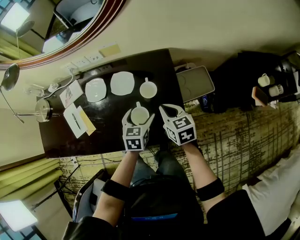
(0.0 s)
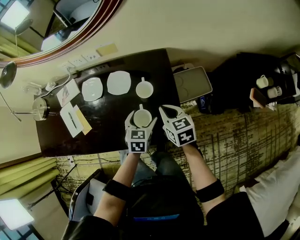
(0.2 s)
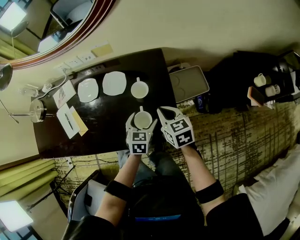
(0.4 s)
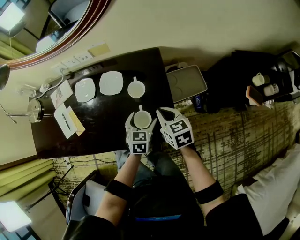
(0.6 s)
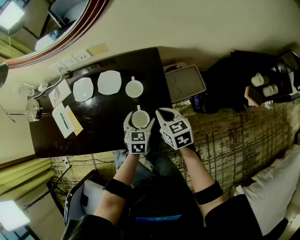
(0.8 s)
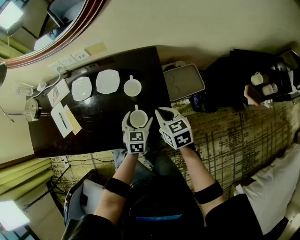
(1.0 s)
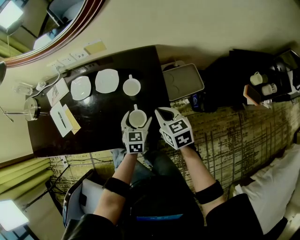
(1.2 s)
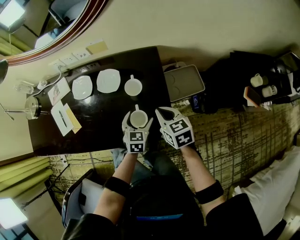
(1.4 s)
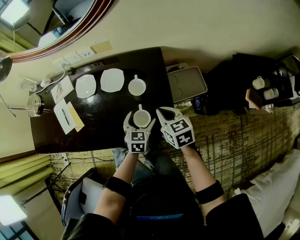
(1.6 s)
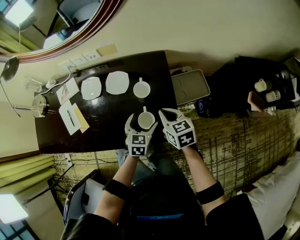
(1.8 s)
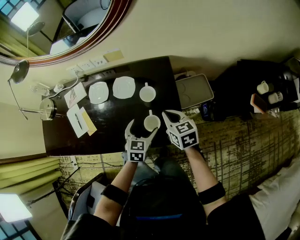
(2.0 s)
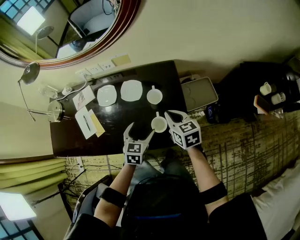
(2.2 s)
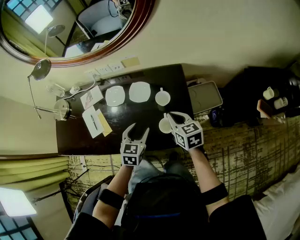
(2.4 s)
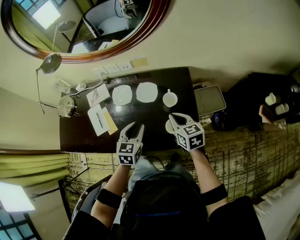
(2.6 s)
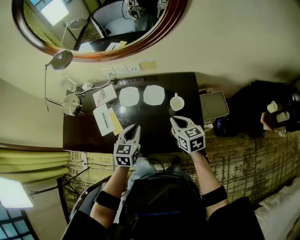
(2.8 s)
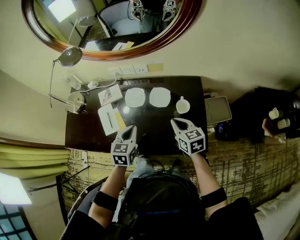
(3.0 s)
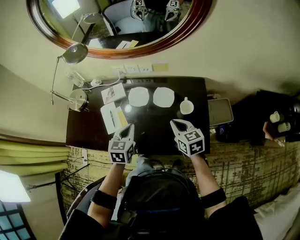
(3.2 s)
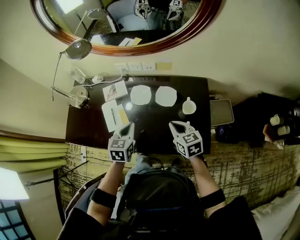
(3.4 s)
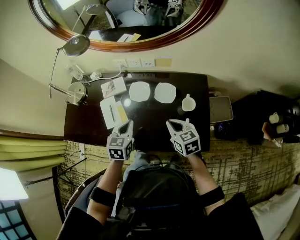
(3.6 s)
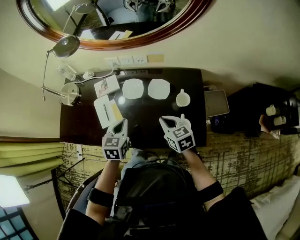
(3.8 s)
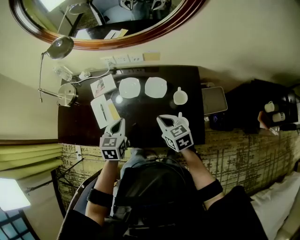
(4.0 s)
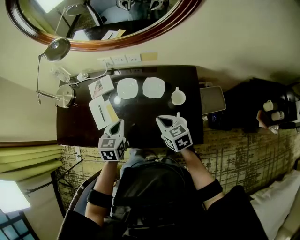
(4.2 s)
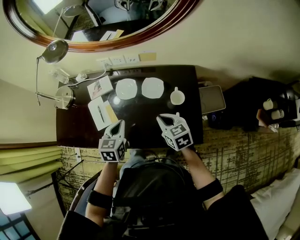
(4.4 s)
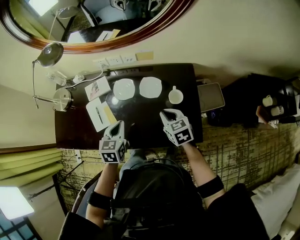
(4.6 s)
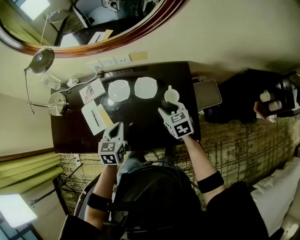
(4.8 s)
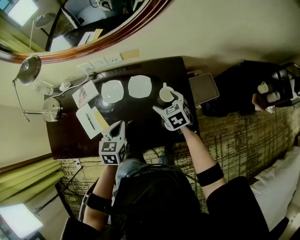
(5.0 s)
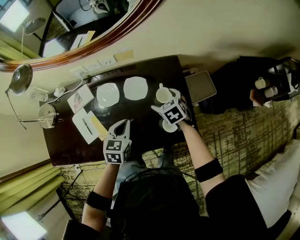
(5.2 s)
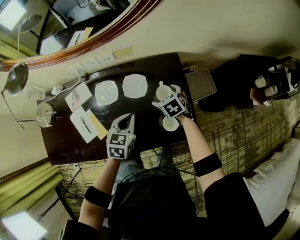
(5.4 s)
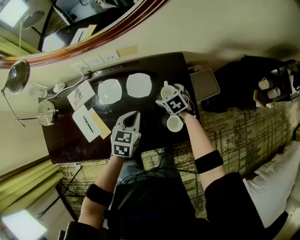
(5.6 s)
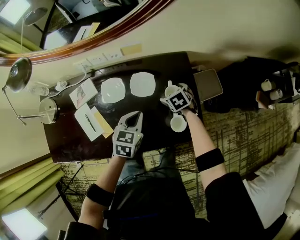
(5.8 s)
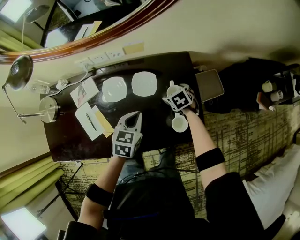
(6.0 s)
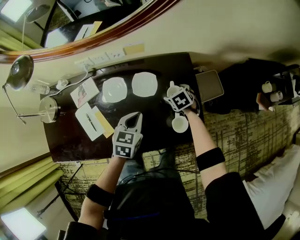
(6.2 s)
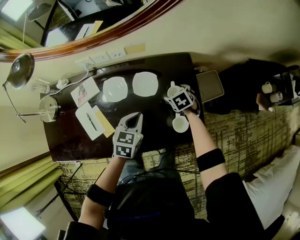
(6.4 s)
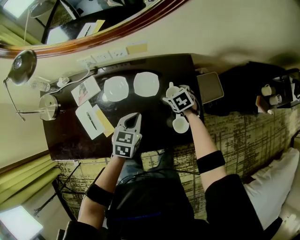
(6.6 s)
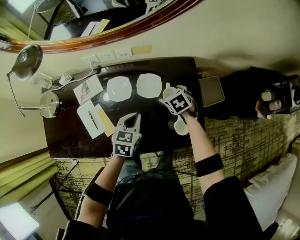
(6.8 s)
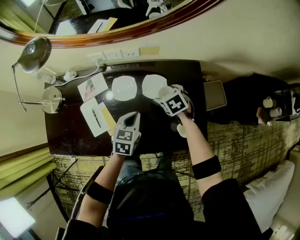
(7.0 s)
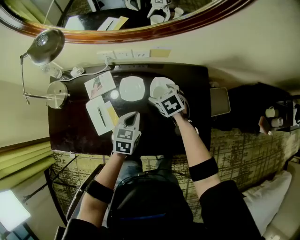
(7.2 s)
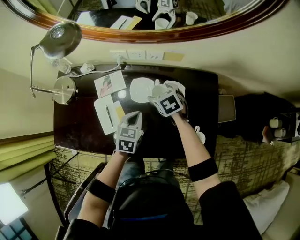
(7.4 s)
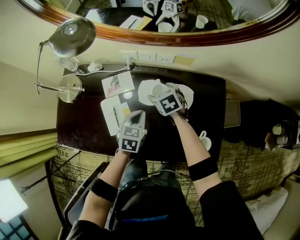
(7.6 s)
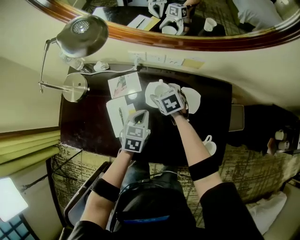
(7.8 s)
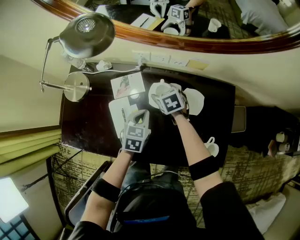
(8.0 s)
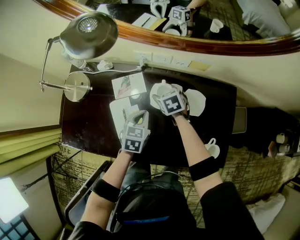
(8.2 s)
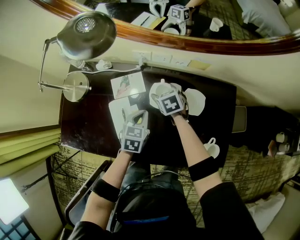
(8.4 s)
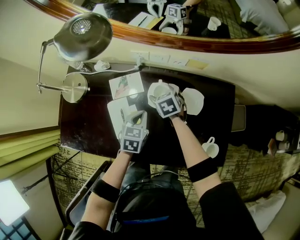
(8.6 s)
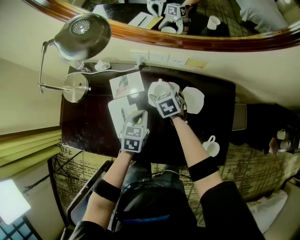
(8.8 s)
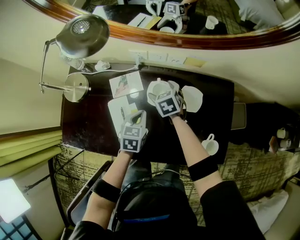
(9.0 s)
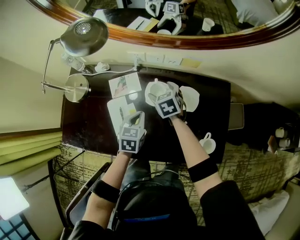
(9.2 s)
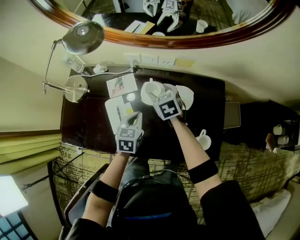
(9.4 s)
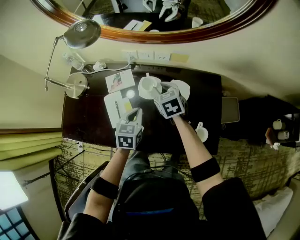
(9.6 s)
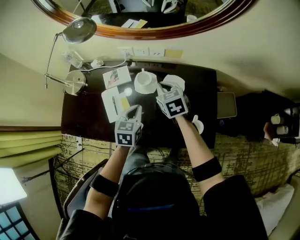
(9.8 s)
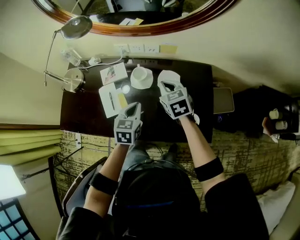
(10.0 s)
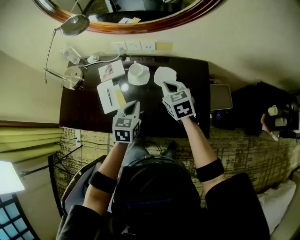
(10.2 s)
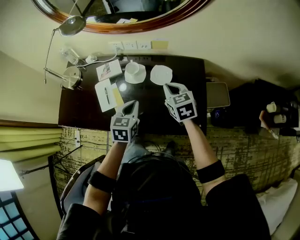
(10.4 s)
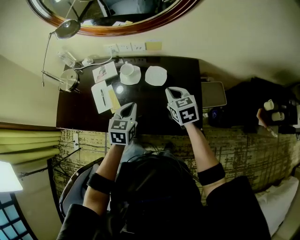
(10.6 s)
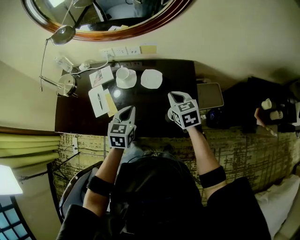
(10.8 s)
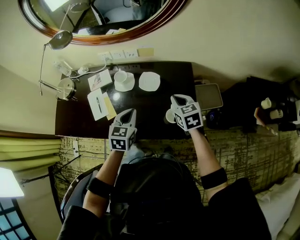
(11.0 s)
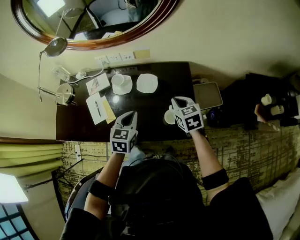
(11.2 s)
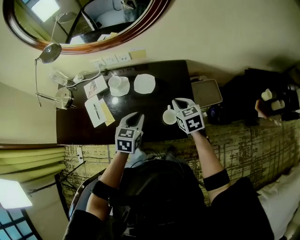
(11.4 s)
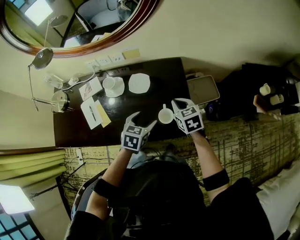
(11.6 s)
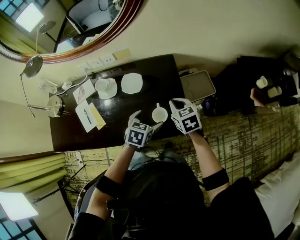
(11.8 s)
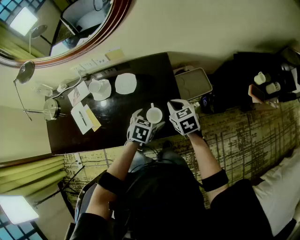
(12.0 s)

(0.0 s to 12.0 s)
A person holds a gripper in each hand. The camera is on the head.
0.0 s - 1.6 s: The left gripper goes approximately 10 cm to the right and downward.
1.6 s - 3.0 s: The right gripper heads to the left and upward, covering about 20 cm. The left gripper moves to the left and upward, some 30 cm, and closes its fingers.
3.0 s - 4.4 s: The right gripper moves approximately 5 cm.
4.4 s - 6.0 s: The right gripper travels downward, forward and to the right by roughly 25 cm, turns by some 30 degrees, and opens its fingers. The left gripper travels to the right and forward by about 15 cm, and rotates about 20 degrees.
6.0 s - 7.6 s: The left gripper goes about 15 cm to the left, while the right gripper heads to the left, covering some 30 cm.
9.0 s - 10.4 s: The left gripper is displaced backward, upward and to the right by approximately 20 cm. Meanwhile the right gripper heads backward, to the right and upward, covering roughly 30 cm, and closes up.
10.4 s - 12.0 s: Both grippers travel together to the right, roughly 25 cm. The left gripper rotates approximately 40 degrees, and opens its fingers.

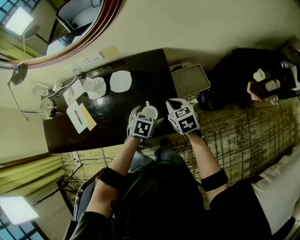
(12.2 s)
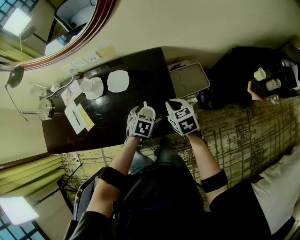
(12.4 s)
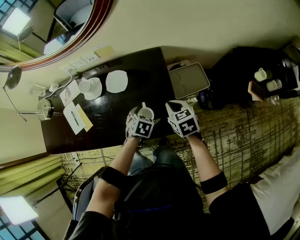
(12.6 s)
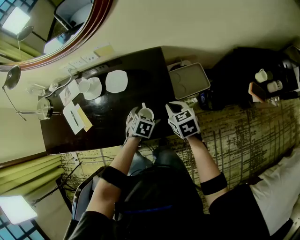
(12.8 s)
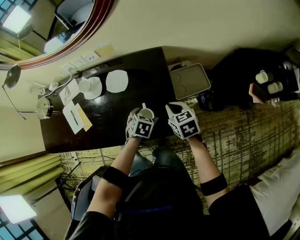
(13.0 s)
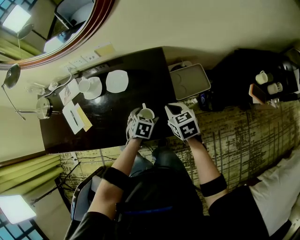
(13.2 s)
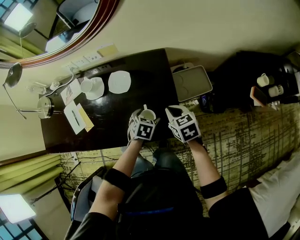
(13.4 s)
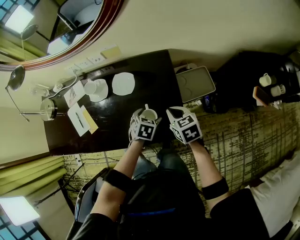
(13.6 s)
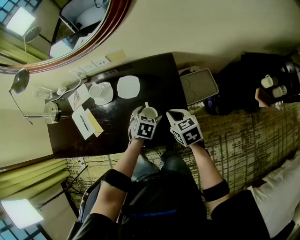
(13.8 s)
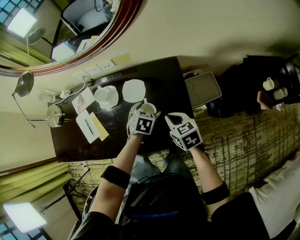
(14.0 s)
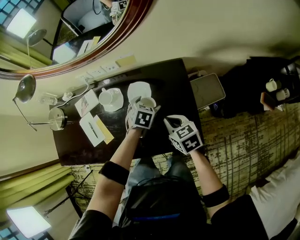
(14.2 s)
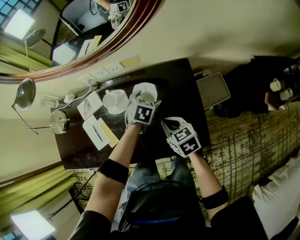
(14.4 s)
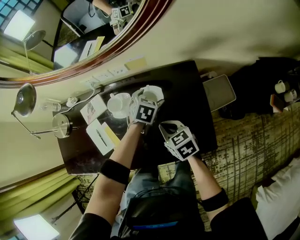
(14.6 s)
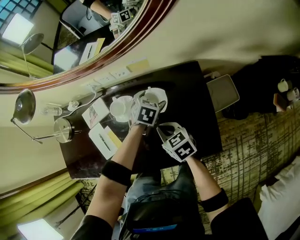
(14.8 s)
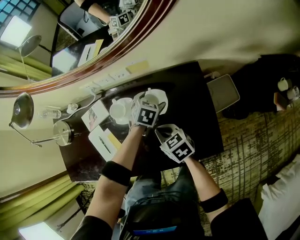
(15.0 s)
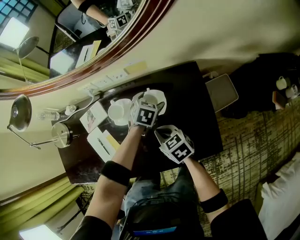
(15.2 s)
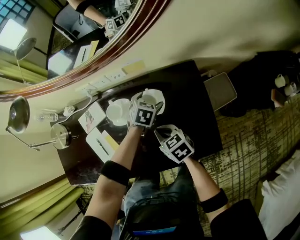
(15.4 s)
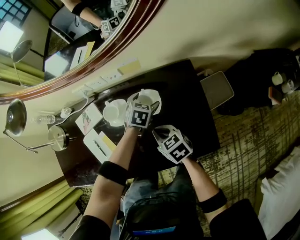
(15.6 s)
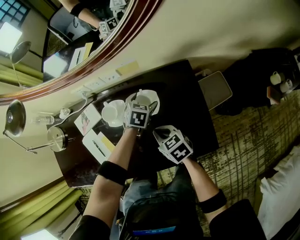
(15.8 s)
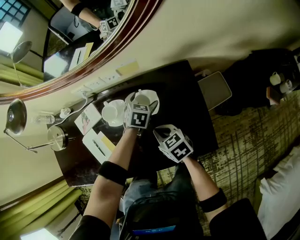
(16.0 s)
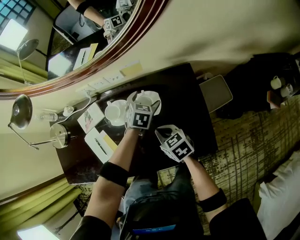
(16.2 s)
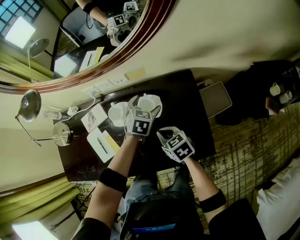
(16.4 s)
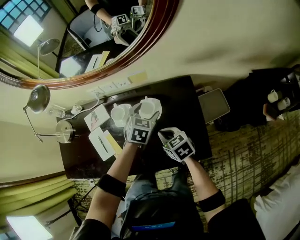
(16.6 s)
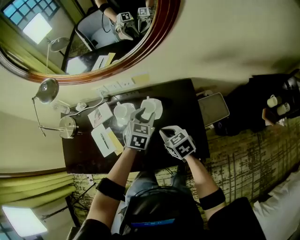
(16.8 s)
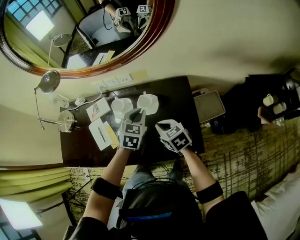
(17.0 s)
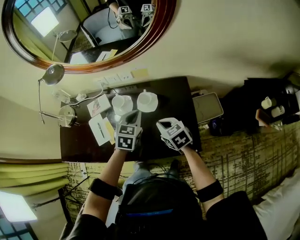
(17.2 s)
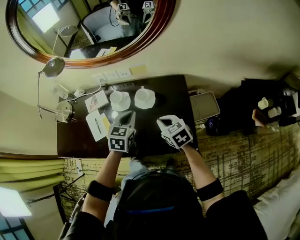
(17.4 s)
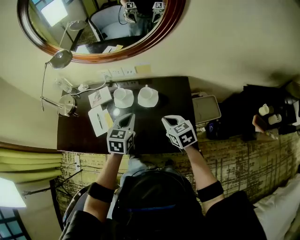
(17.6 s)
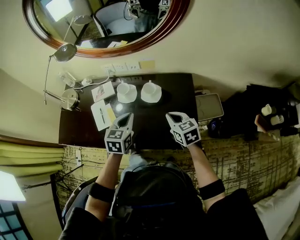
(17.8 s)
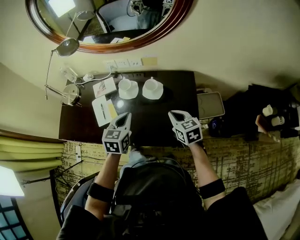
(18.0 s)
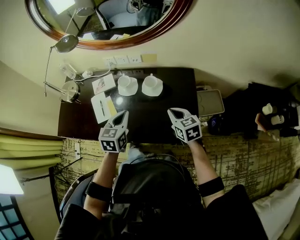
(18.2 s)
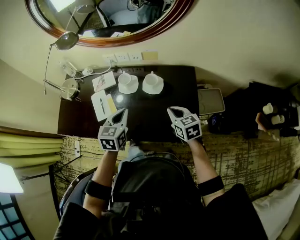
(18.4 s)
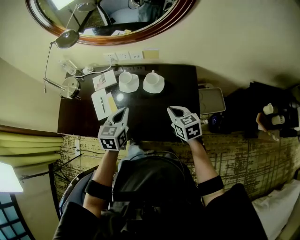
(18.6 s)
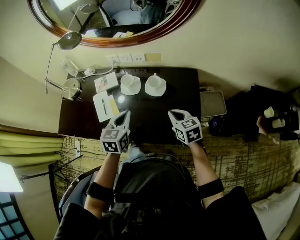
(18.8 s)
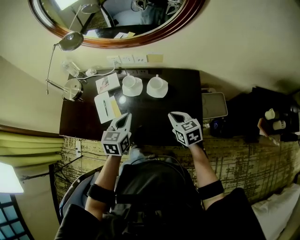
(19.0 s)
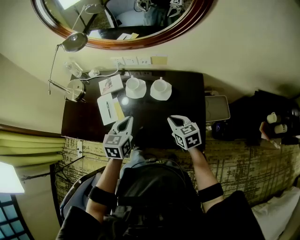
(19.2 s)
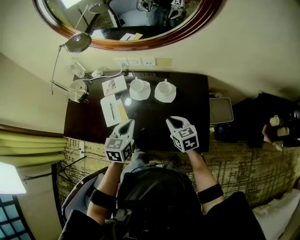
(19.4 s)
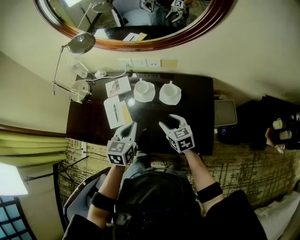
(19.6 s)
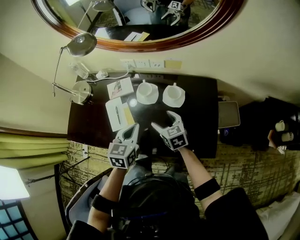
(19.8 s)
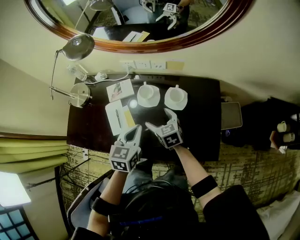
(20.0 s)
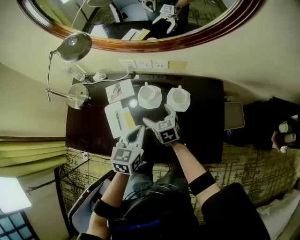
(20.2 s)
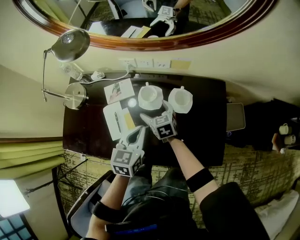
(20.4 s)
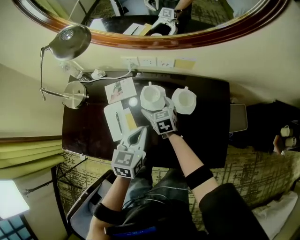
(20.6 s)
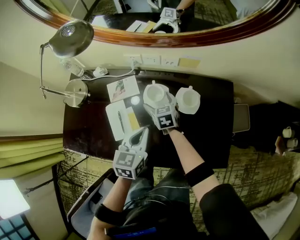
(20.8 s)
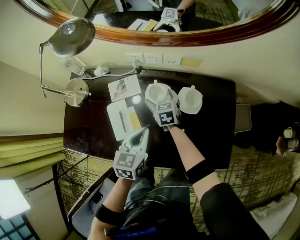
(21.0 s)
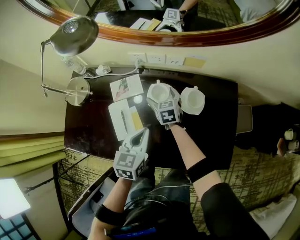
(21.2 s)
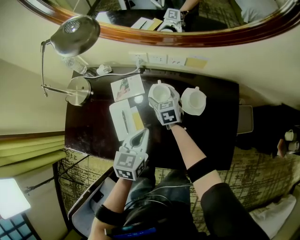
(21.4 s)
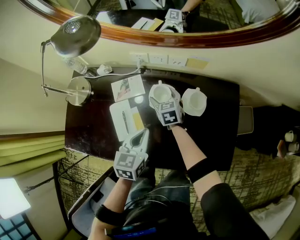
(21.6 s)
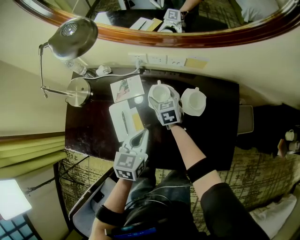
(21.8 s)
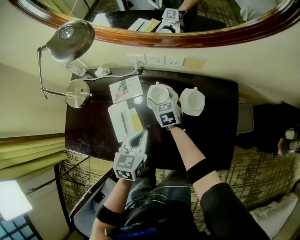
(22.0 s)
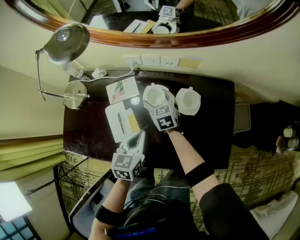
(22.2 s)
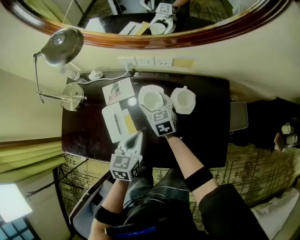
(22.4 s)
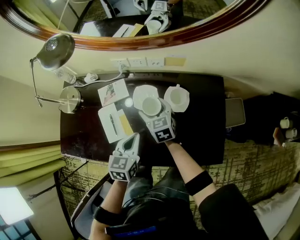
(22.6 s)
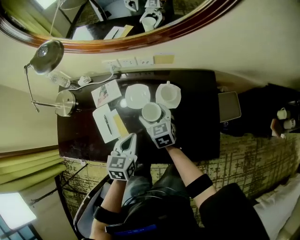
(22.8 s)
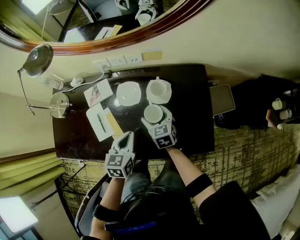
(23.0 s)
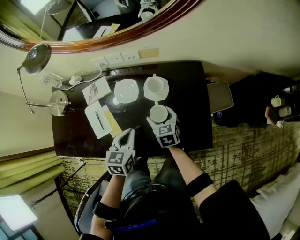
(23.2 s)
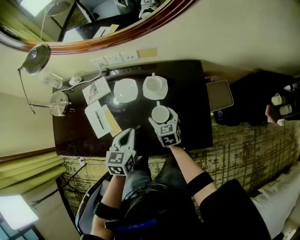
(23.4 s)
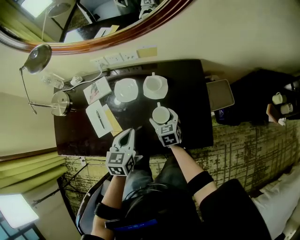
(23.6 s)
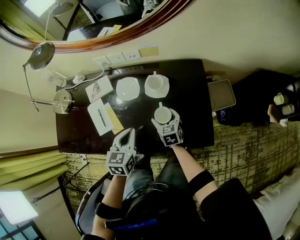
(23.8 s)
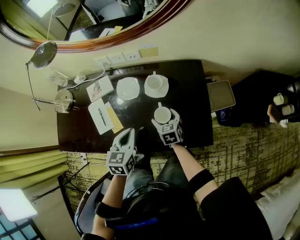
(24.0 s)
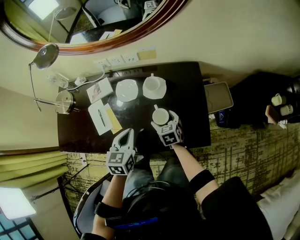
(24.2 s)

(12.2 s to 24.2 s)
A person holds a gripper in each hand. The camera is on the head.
12.2 s - 13.8 s: The left gripper is displaced forward by approximately 5 cm.
13.8 s - 15.2 s: The right gripper goes approximately 20 cm to the left. Meanwhile the left gripper heads forward and to the left, covering about 20 cm.
15.2 s - 16.6 s: The left gripper goes about 10 cm upward. Meanwhile the right gripper moves upward, some 5 cm.
16.6 s - 18.2 s: The right gripper goes approximately 10 cm backward, upward and to the right, while the left gripper shifts approximately 25 cm backward, to the left and upward, turns by approximately 30 degrees, and closes.
18.2 s - 19.8 s: The left gripper heads to the left, covering about 5 cm; the right gripper is displaced to the left, forward and downward by some 20 cm, and opens.
19.8 s - 21.2 s: The left gripper moves downward and forward, some 10 cm; the right gripper is displaced forward, downward and to the left by roughly 25 cm.
21.2 s - 22.6 s: The right gripper is displaced backward and upward by about 10 cm.
22.6 s - 24.2 s: The left gripper travels to the right and backward by approximately 10 cm; the right gripper goes approximately 20 cm to the right, backward and downward.
